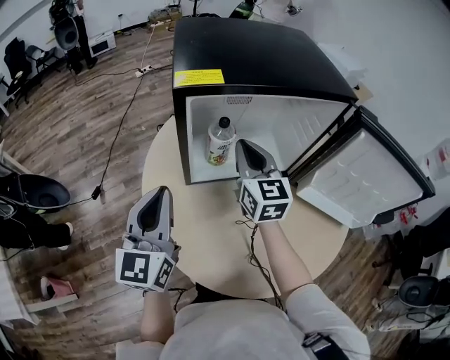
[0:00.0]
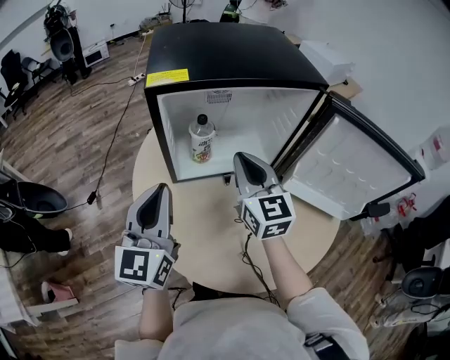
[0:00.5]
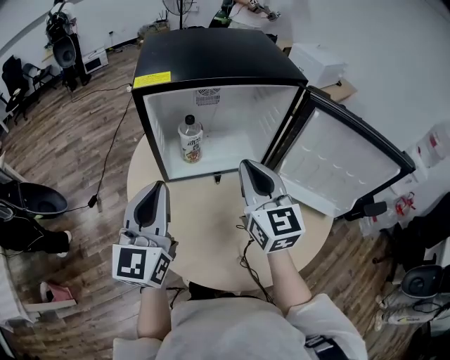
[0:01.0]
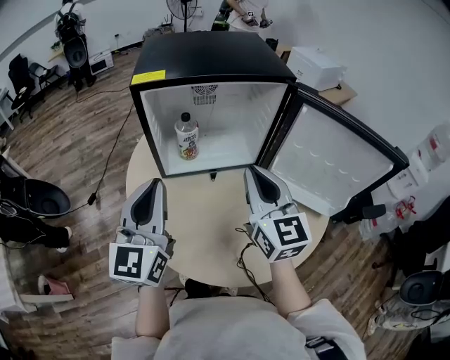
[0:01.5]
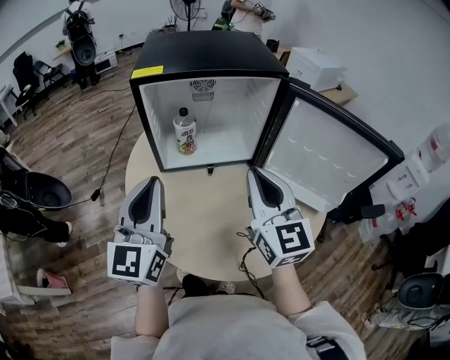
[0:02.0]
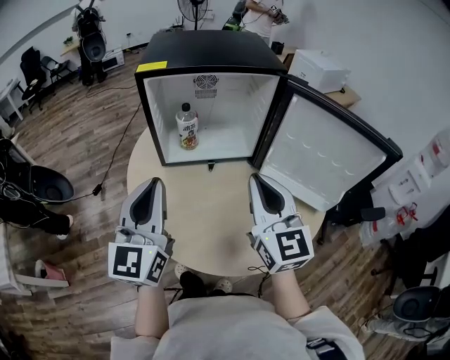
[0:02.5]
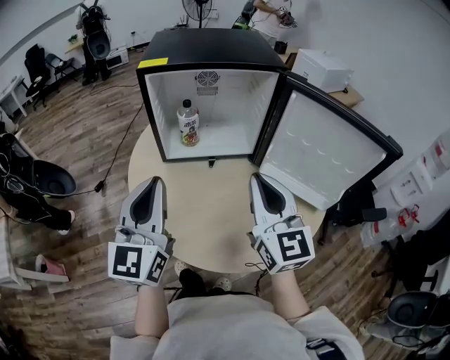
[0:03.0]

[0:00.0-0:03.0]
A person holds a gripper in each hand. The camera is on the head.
0:00.0 to 0:01.5: The left gripper goes about 15 cm to the right, backward and upward. Meanwhile the right gripper moves backward, to the right and upward, roughly 25 cm.
0:01.5 to 0:03.0: The two grippers go roughly 10 cm backward.

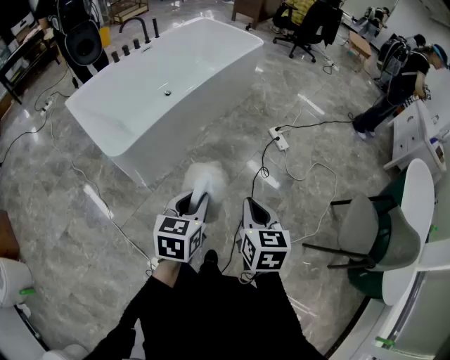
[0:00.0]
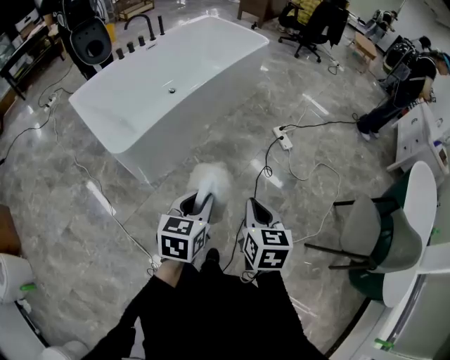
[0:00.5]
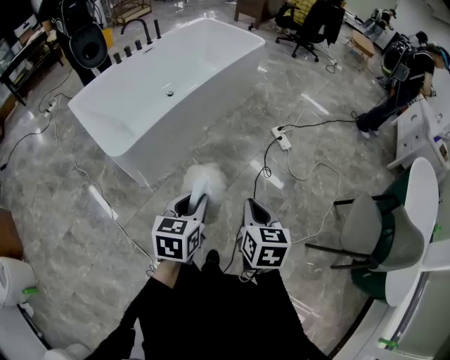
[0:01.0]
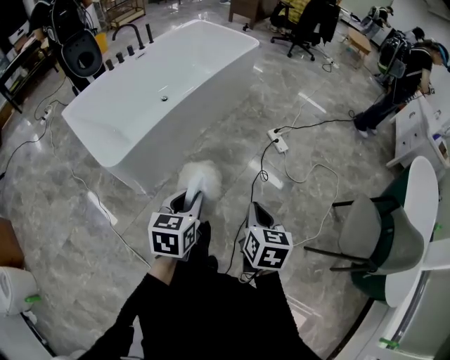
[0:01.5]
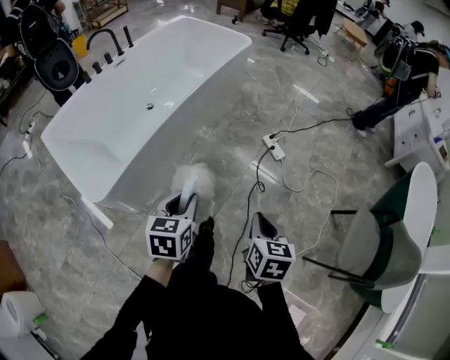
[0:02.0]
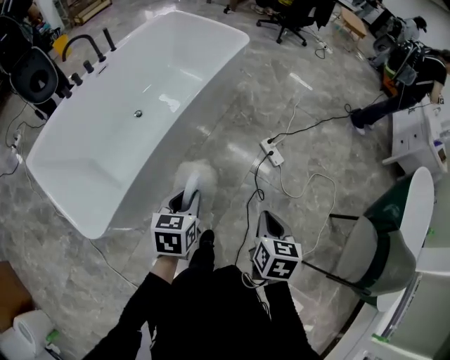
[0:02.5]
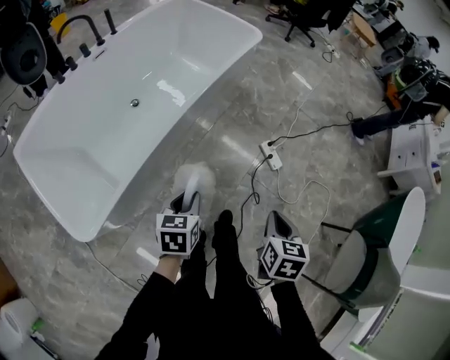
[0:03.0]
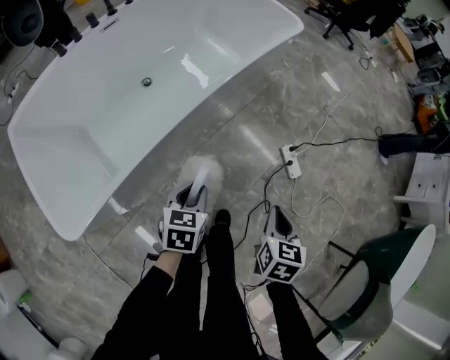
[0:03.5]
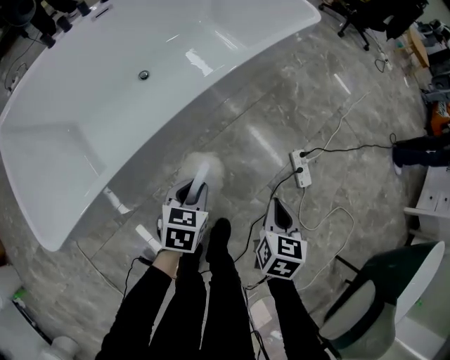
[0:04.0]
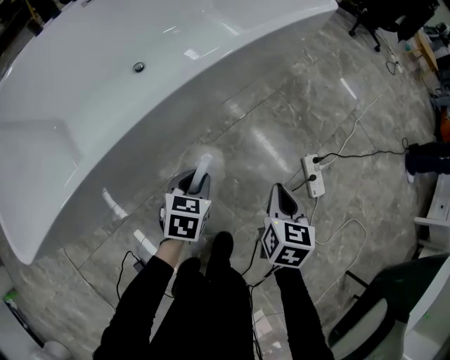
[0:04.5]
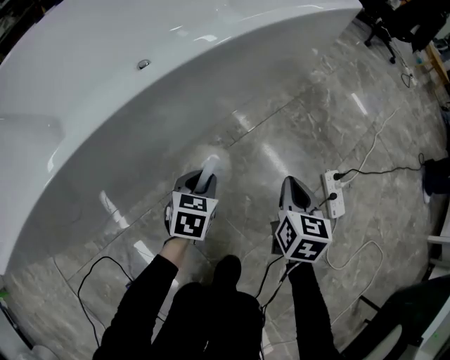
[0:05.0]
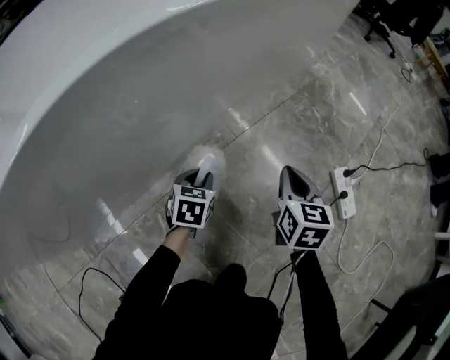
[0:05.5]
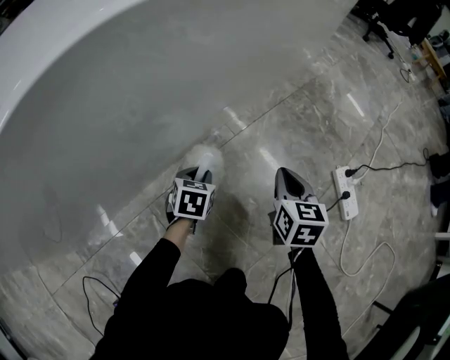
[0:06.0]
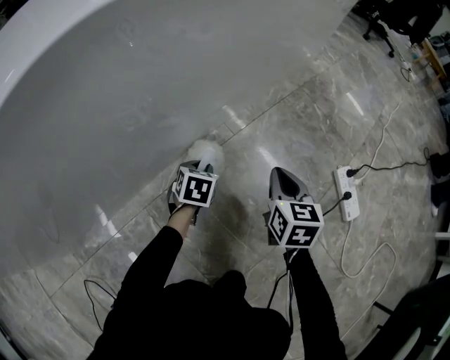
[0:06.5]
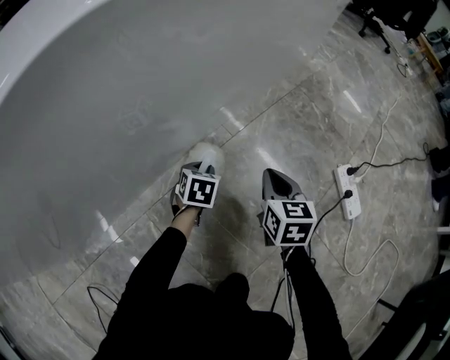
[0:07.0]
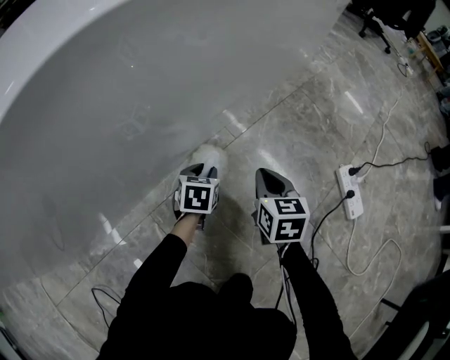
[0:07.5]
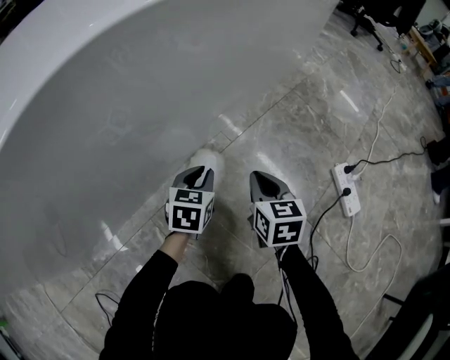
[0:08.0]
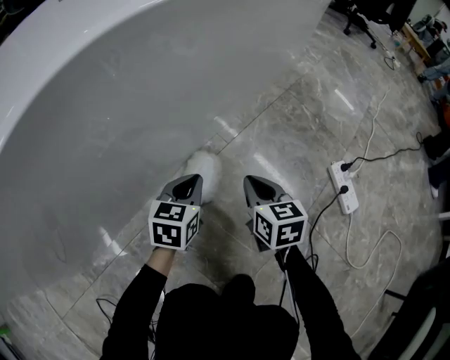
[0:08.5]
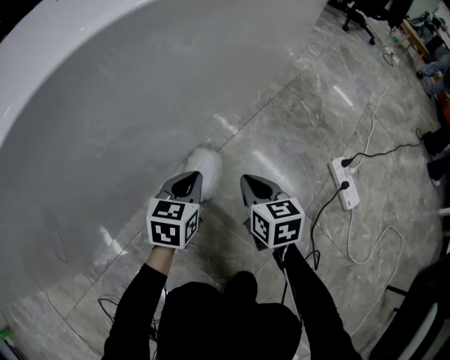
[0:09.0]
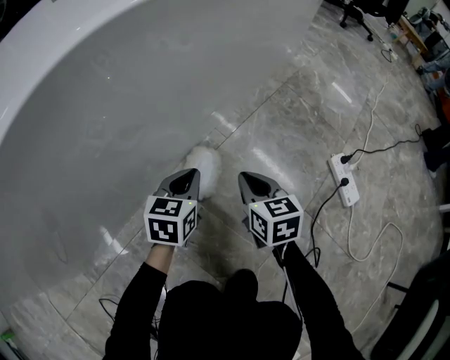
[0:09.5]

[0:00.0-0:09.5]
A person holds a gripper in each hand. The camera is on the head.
0:00.0 to 0:02.0: Both grippers move forward, roughly 20 cm.
0:02.0 to 0:04.0: Both grippers move forward and downward, some 40 cm.
0:04.0 to 0:05.5: The left gripper heads downward, covering roughly 35 cm. The right gripper travels downward and forward by approximately 35 cm.
0:05.5 to 0:07.5: The left gripper moves downward, some 5 cm; the right gripper heads downward and to the left, covering roughly 10 cm.
0:07.5 to 0:09.5: The left gripper moves upward, some 10 cm, and closes.

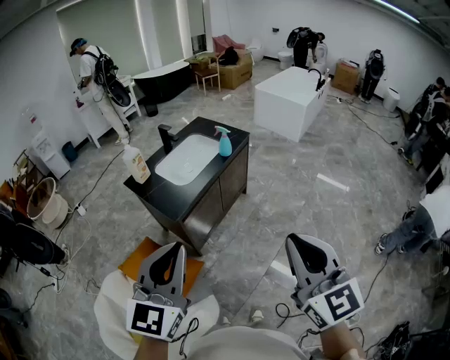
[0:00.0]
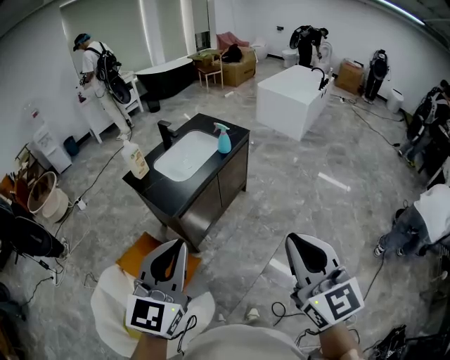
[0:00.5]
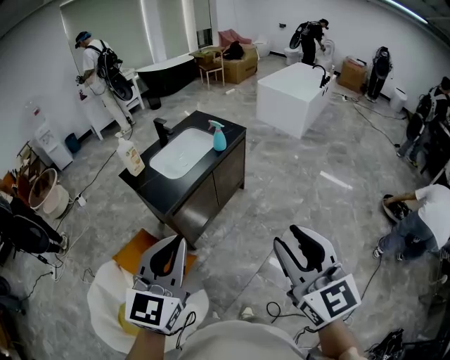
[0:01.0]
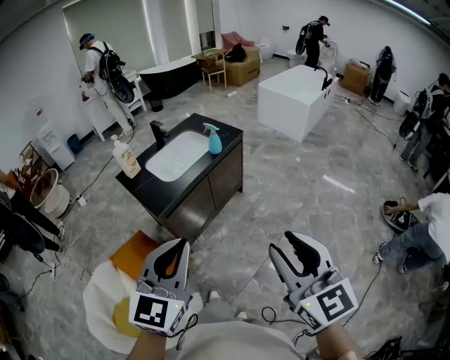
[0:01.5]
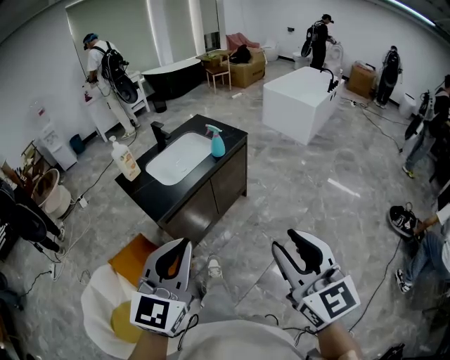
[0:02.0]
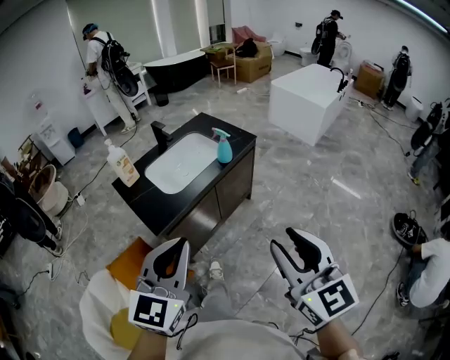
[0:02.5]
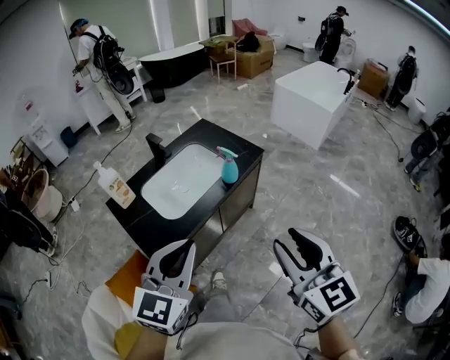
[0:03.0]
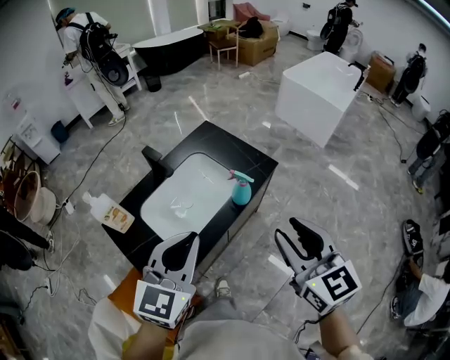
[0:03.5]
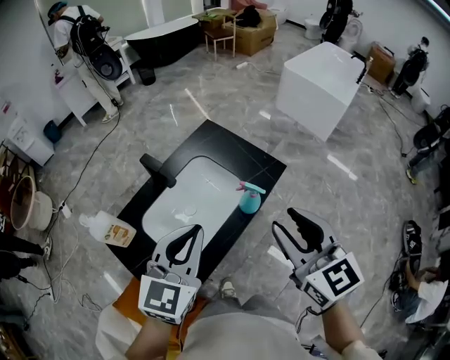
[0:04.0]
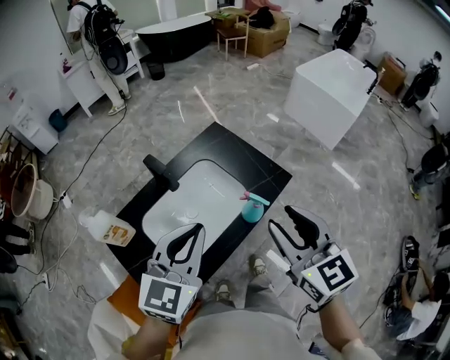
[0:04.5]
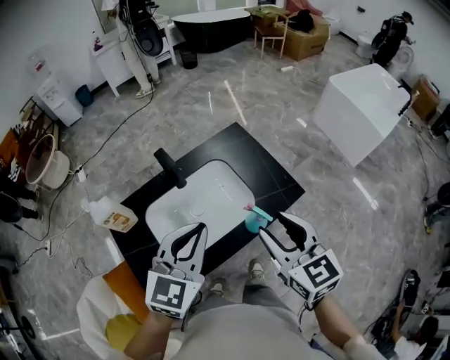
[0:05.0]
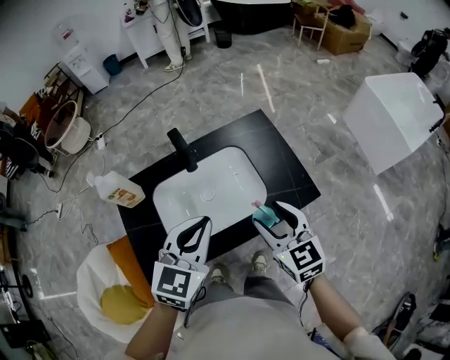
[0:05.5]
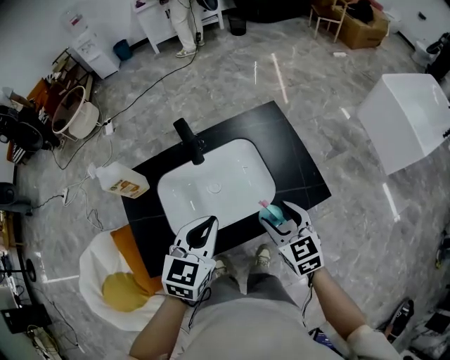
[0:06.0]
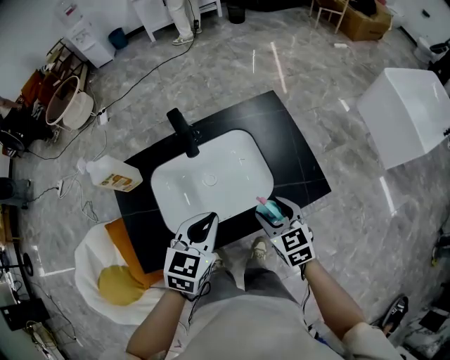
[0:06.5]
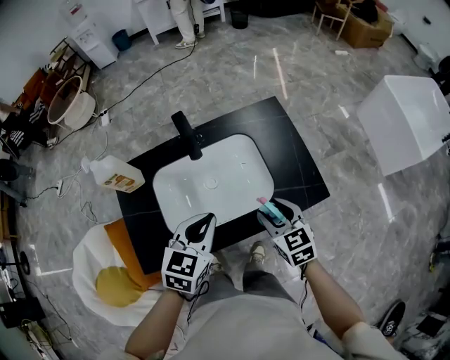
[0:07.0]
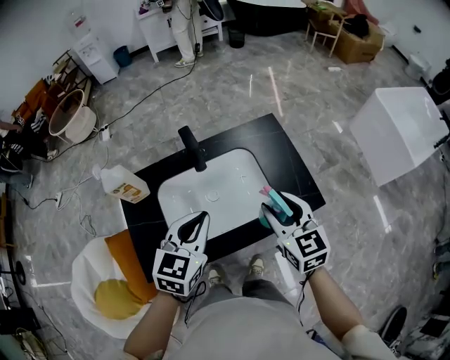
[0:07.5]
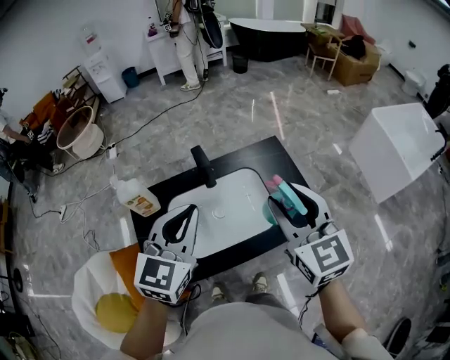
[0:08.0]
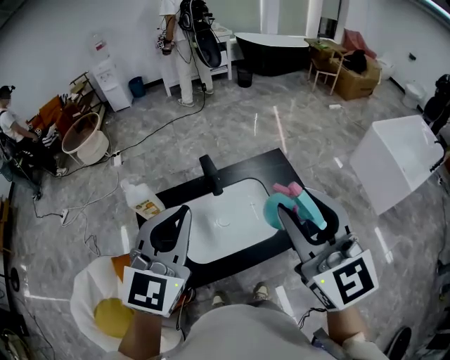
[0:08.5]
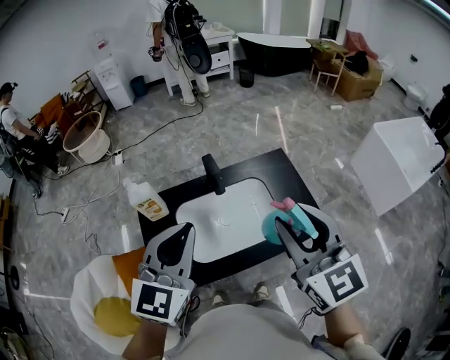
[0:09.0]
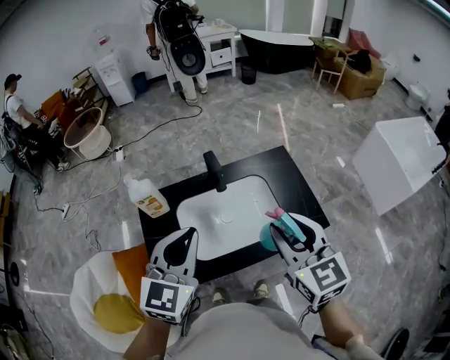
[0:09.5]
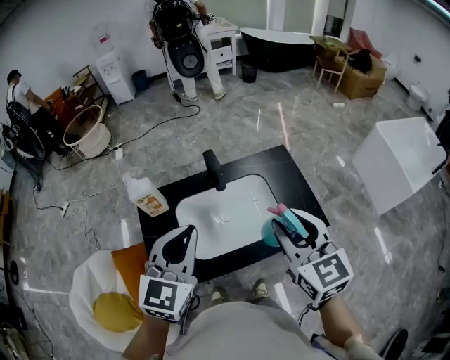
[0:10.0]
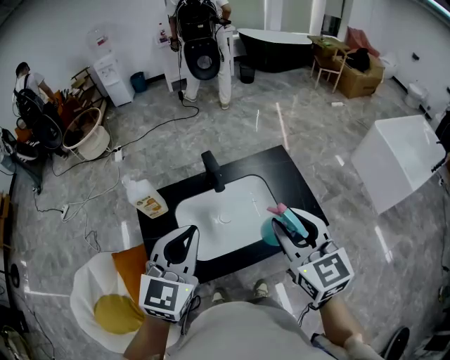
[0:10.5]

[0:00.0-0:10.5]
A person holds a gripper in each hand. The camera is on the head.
0:00.0 to 0:02.0: The left gripper travels to the right by approximately 15 cm; the right gripper shifts roughly 15 cm to the right, forward and downward, and opens.
0:02.0 to 0:04.0: The pair of grippers is taken forward, roughly 60 cm.
0:04.0 to 0:06.5: The left gripper shifts roughly 20 cm downward, and swivels approximately 40 degrees. The right gripper goes some 30 cm downward, and changes its angle by about 40 degrees.
0:06.5 to 0:08.5: Both grippers move upward, approximately 35 cm. The left gripper changes its angle by roughly 30 degrees, while the right gripper tips its fingers upward by some 40 degrees.
0:08.5 to 0:10.5: Both grippers travel together downward, approximately 10 cm.

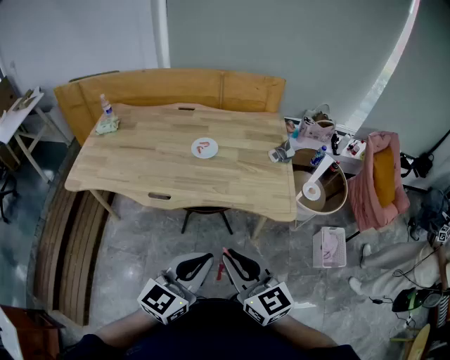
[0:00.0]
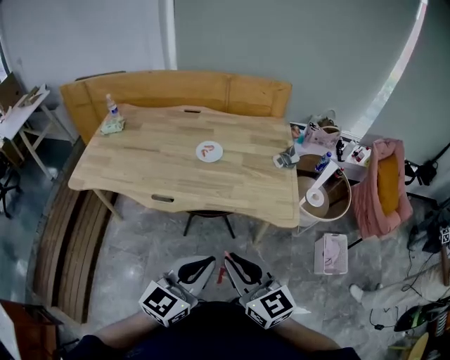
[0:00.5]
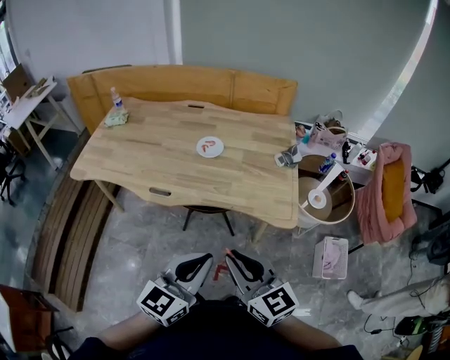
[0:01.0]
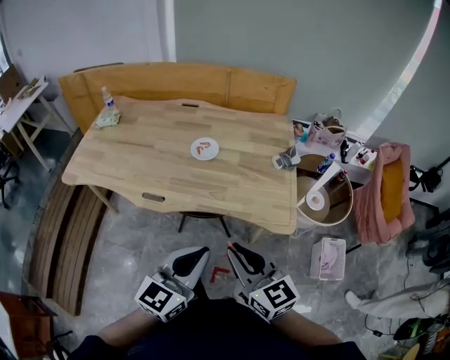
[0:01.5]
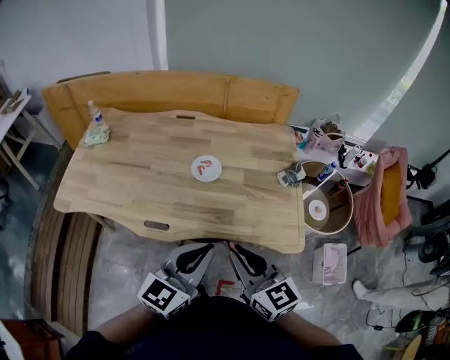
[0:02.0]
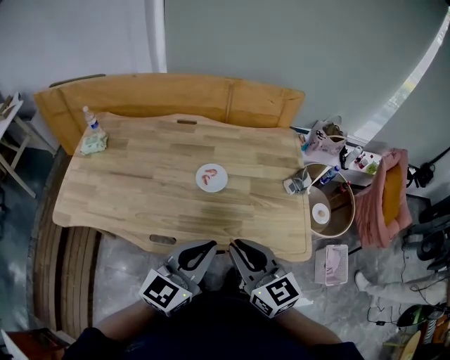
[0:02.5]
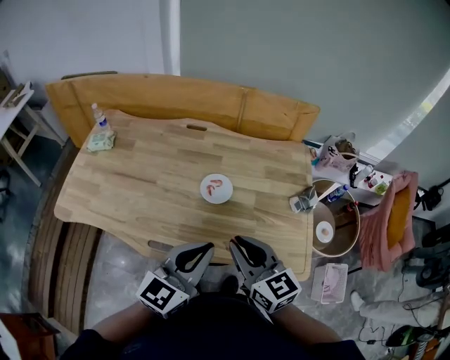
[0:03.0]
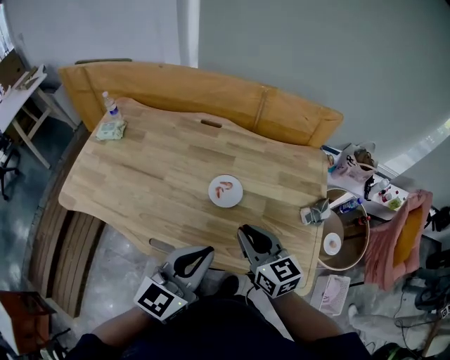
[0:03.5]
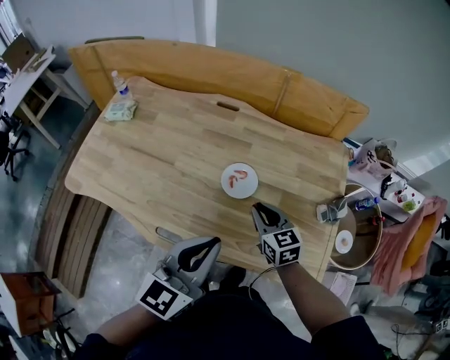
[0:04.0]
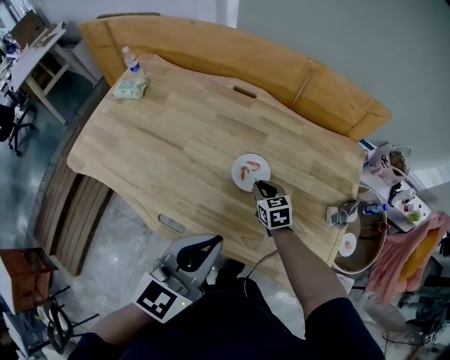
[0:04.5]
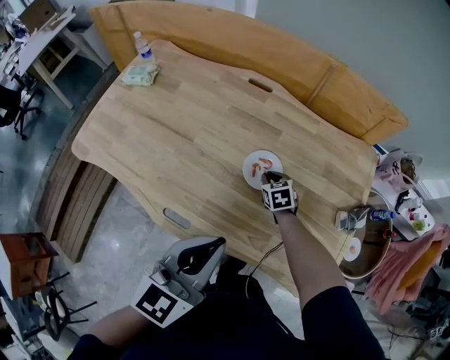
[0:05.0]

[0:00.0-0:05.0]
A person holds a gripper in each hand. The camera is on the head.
0:00.0 to 0:02.5: Both grippers move forward, some 25 cm.
0:02.5 to 0:05.0: The right gripper is displaced downward and forward by about 50 cm, and tilts its fingers about 40 degrees downward; the left gripper shifts some 10 cm forward, and changes its angle by roughly 30 degrees.
